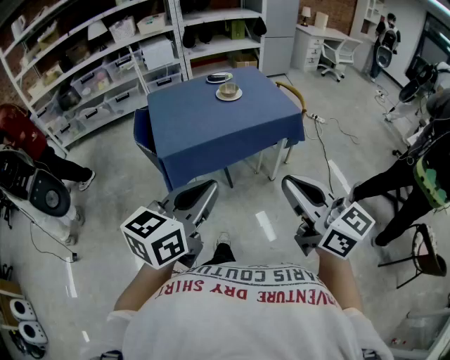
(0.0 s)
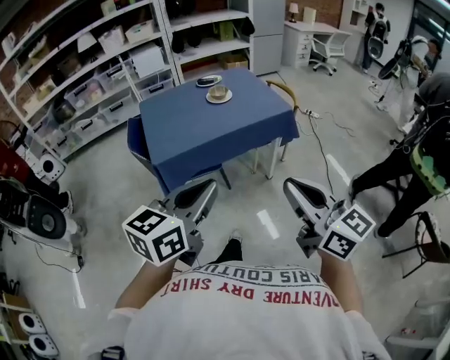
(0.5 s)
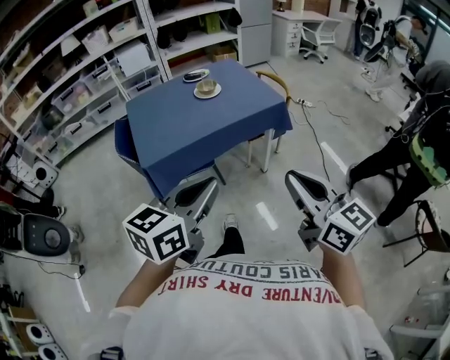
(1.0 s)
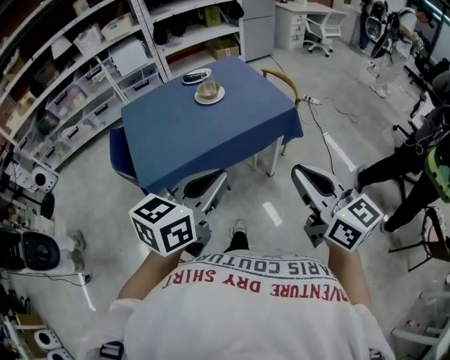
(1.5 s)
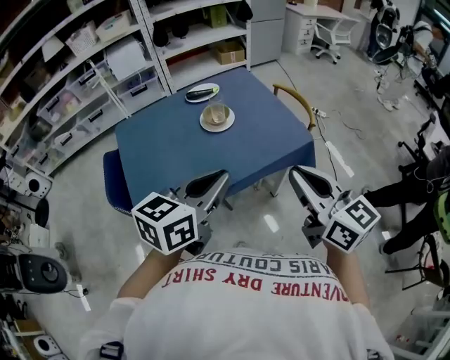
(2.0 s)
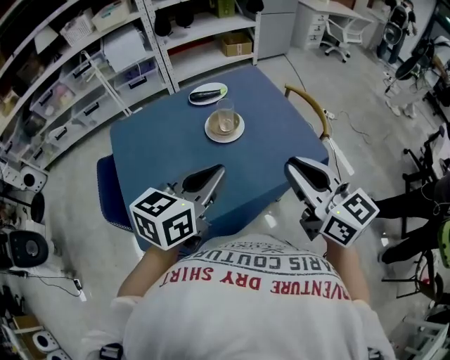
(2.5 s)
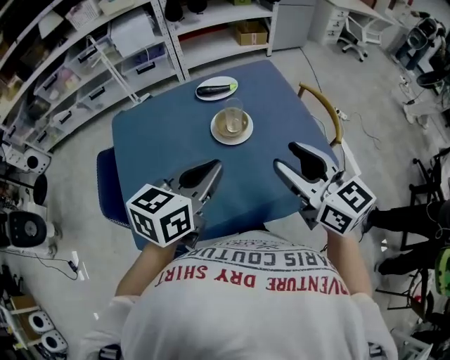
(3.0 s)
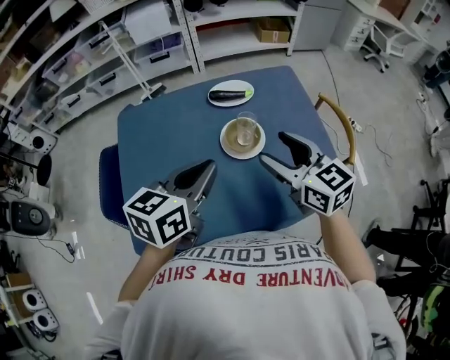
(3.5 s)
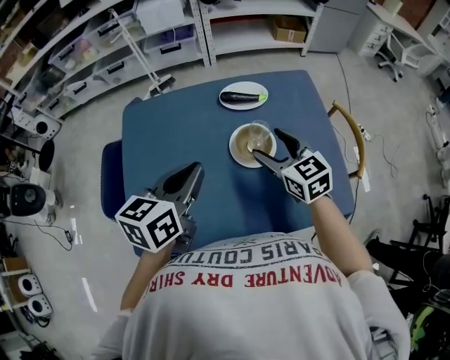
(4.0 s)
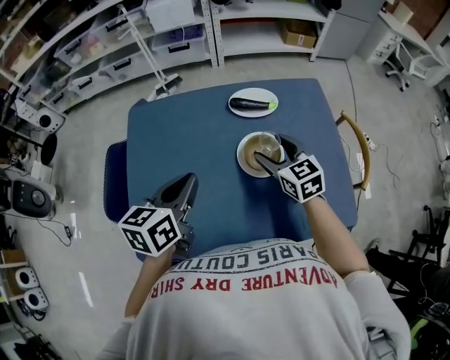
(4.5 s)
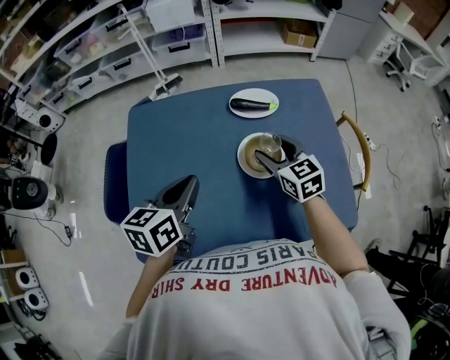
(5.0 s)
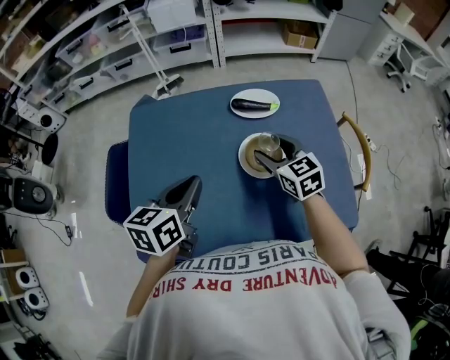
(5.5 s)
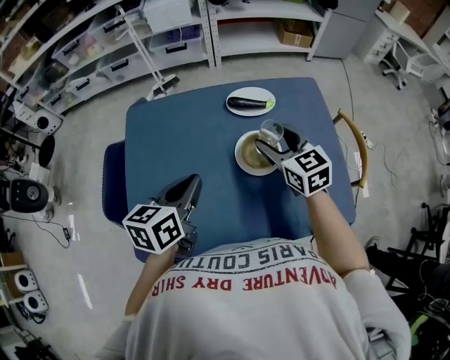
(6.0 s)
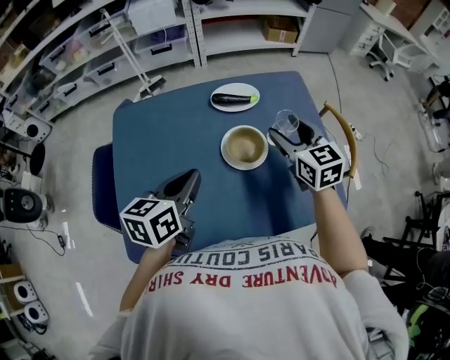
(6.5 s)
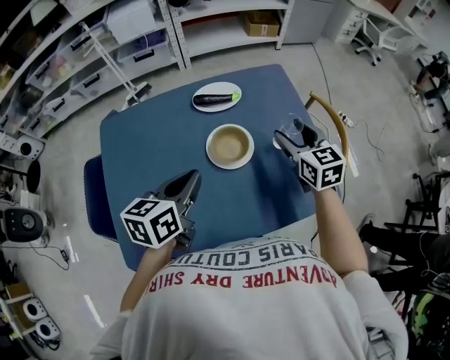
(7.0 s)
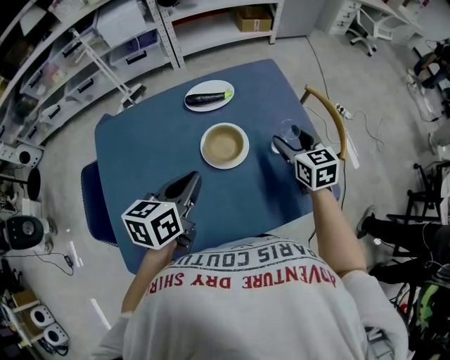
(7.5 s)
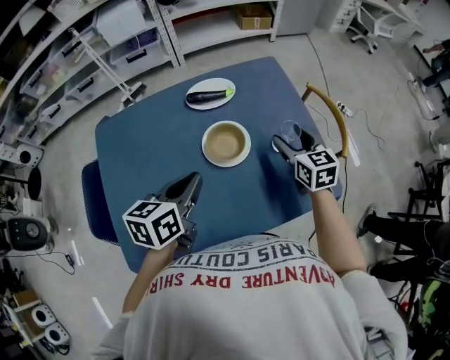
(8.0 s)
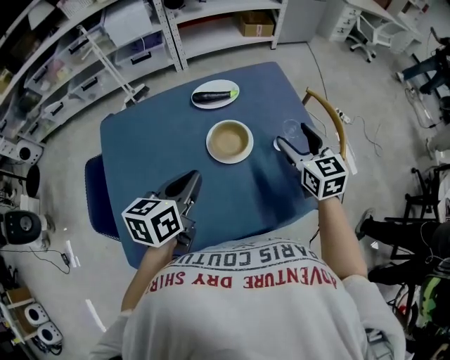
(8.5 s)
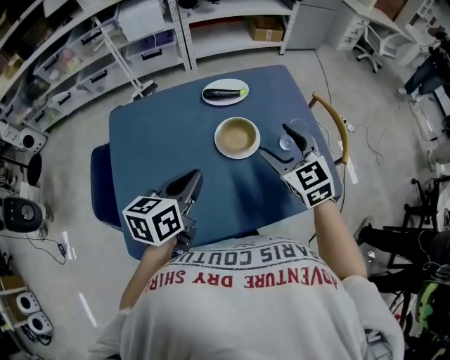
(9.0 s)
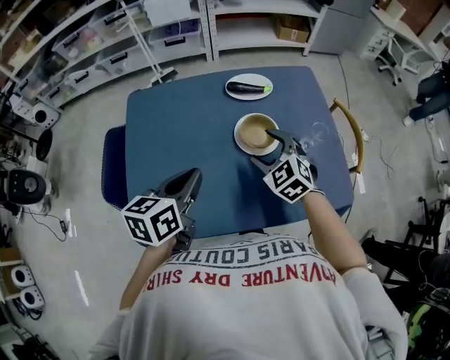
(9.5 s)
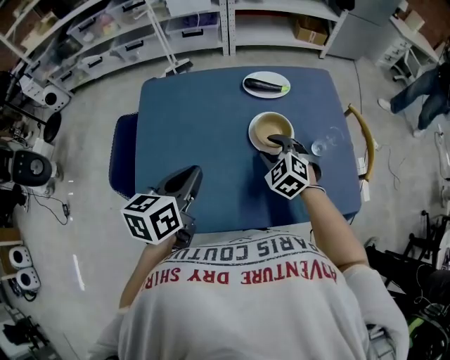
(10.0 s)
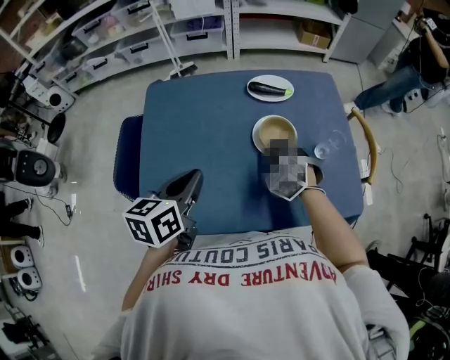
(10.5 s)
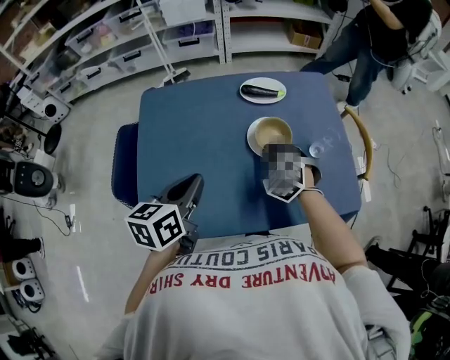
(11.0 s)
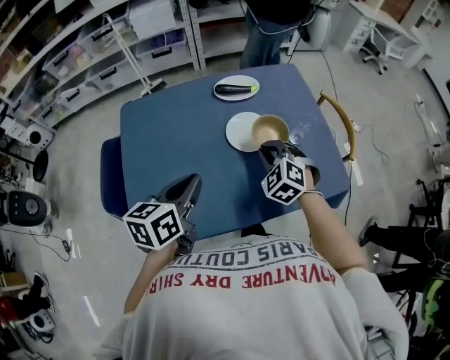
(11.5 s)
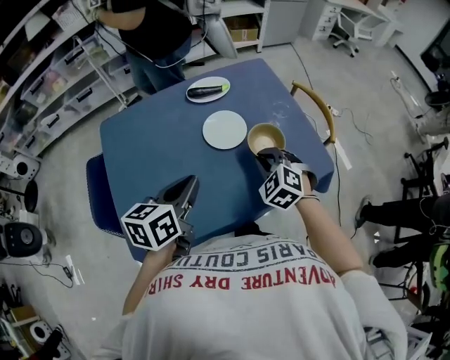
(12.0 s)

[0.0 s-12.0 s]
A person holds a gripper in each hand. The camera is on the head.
0.0 to 2.0 s: Both grippers move forward, approximately 35 cm.
2.0 to 4.0 s: The left gripper heads forward and to the left, covering about 30 cm, and turns by some 30 degrees; the right gripper heads forward and downward, covering roughly 40 cm, swivels approximately 30 degrees, and opens up.
4.0 to 6.0 s: The left gripper shifts by some 5 cm.
6.0 to 8.0 s: The right gripper heads to the right, covering about 15 cm, and changes its angle by approximately 20 degrees. Meanwhile the left gripper is displaced to the right by roughly 10 cm.
8.0 to 10.0 s: The right gripper shifts some 20 cm to the left, and rolls counterclockwise, seen from behind, by roughly 50 degrees; the left gripper shifts roughly 15 cm to the left and backward.
10.0 to 12.0 s: The left gripper goes about 10 cm to the right; the right gripper travels to the right and backward by approximately 10 cm, and closes its fingers.

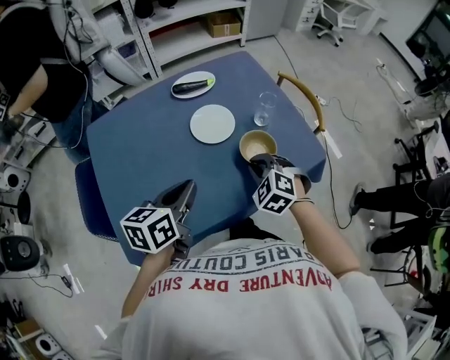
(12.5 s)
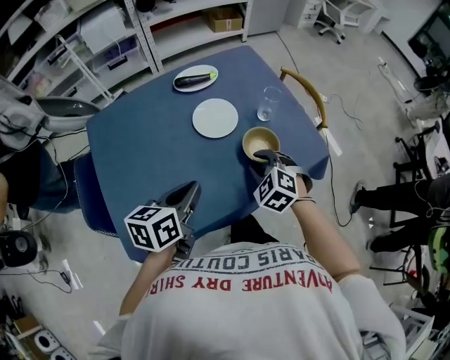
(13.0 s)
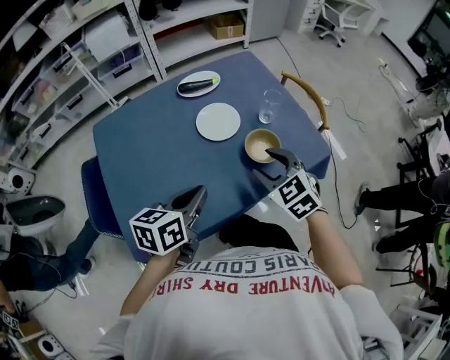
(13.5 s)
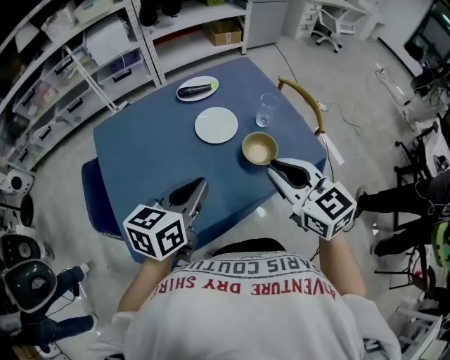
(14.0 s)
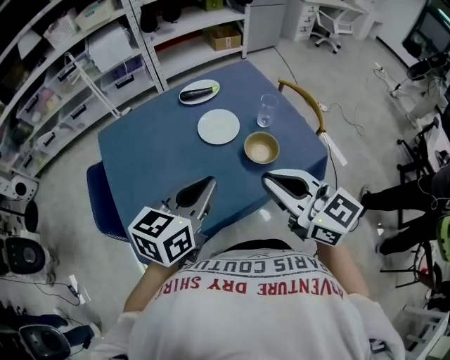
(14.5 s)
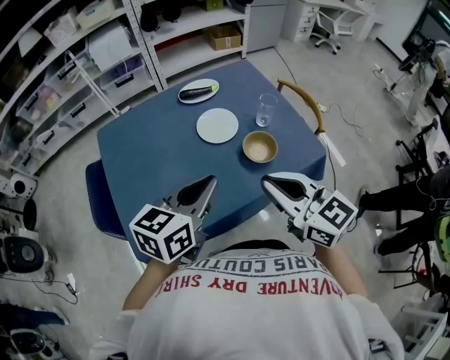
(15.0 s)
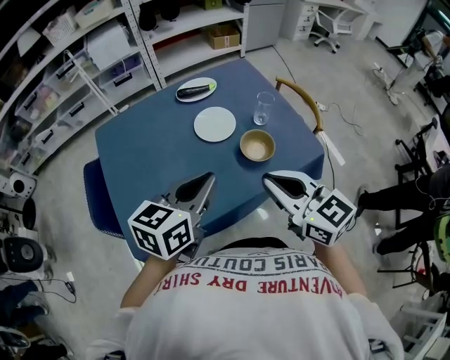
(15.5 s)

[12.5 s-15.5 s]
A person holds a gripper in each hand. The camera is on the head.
12.5 to 14.0 s: The right gripper shifts approximately 20 cm upward, angles its fingers upward, by approximately 30 degrees, and opens, then closes again; the left gripper is displaced upward by roughly 5 cm.
14.0 to 15.5 s: There are only small adjustments of the grippers.

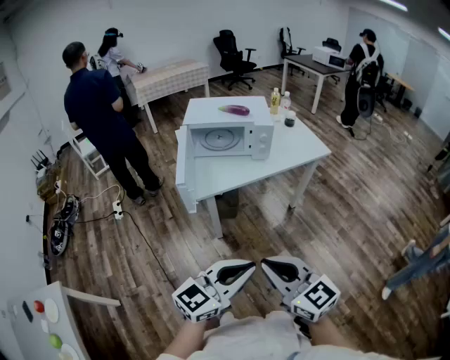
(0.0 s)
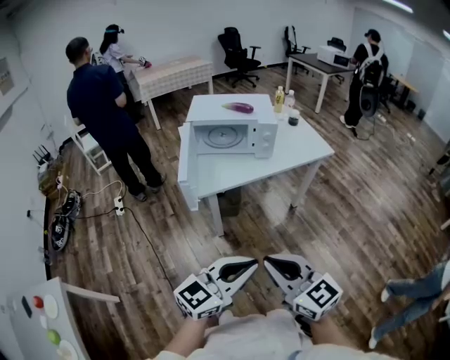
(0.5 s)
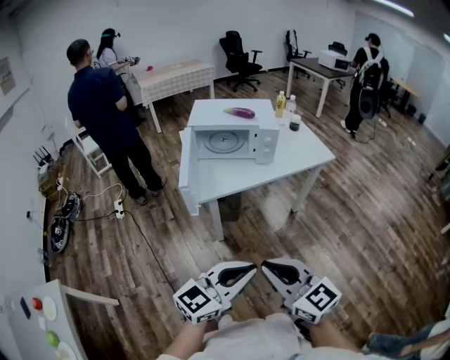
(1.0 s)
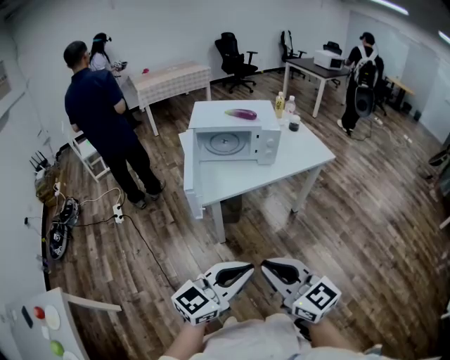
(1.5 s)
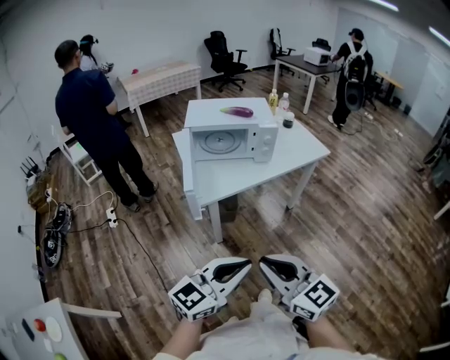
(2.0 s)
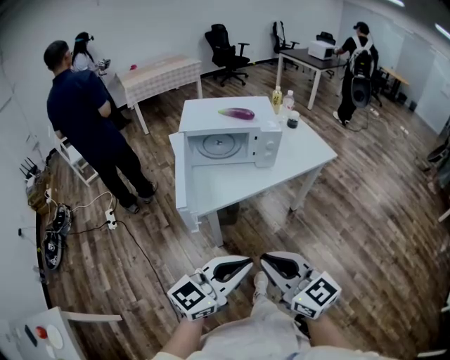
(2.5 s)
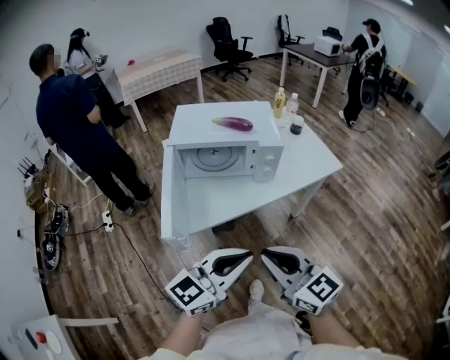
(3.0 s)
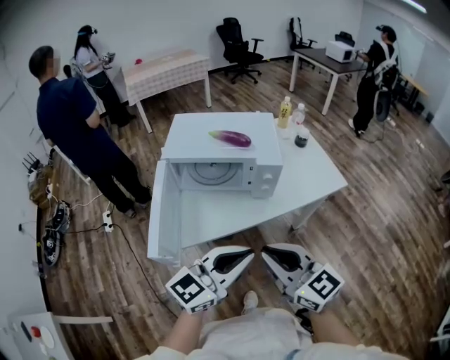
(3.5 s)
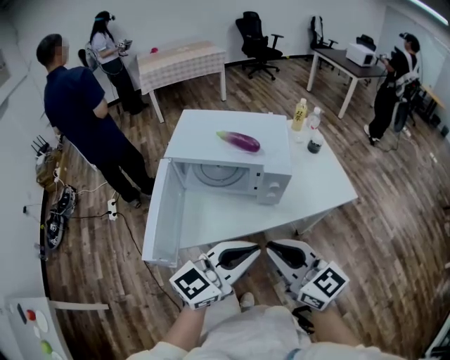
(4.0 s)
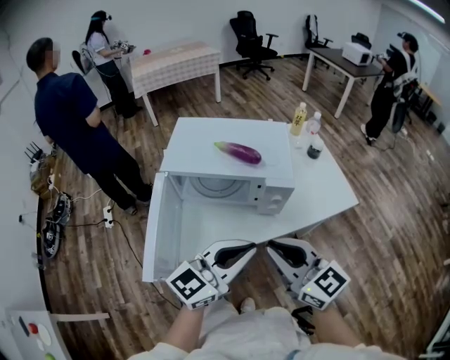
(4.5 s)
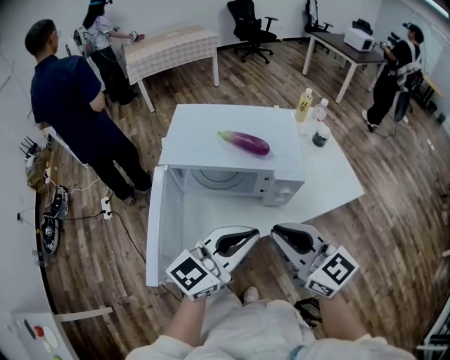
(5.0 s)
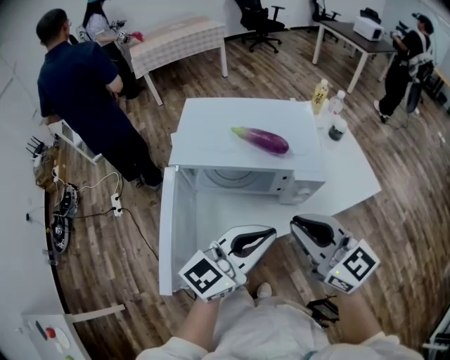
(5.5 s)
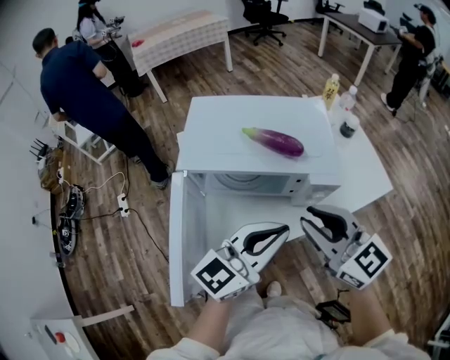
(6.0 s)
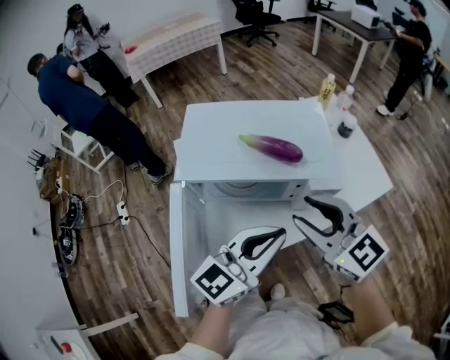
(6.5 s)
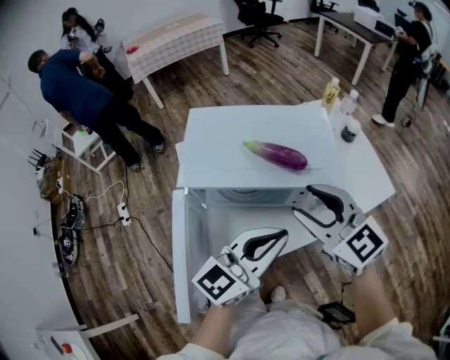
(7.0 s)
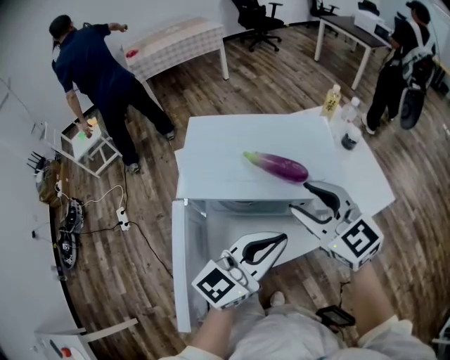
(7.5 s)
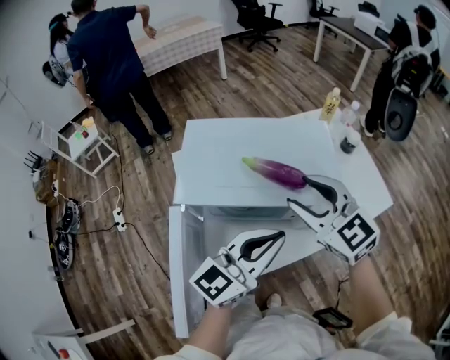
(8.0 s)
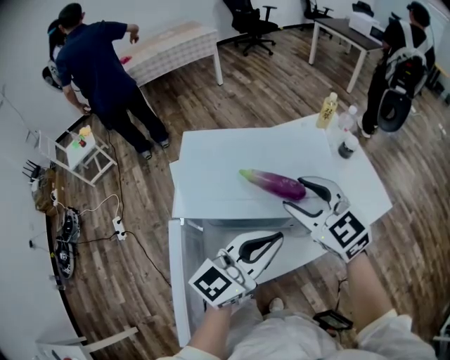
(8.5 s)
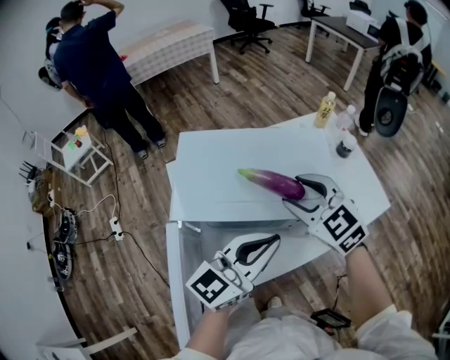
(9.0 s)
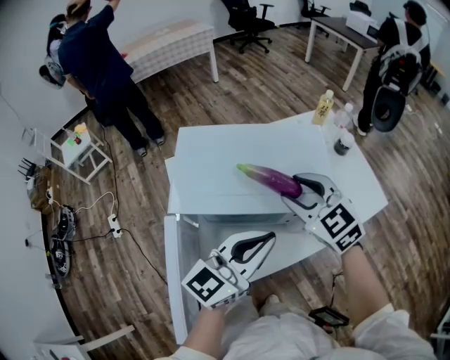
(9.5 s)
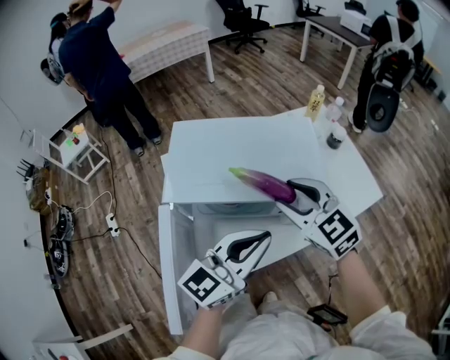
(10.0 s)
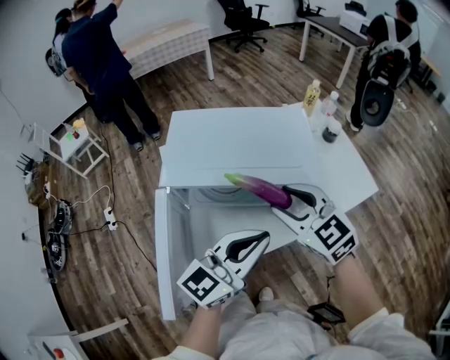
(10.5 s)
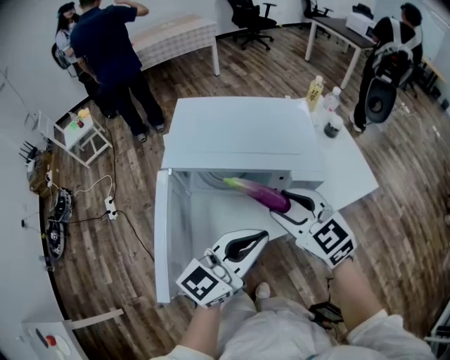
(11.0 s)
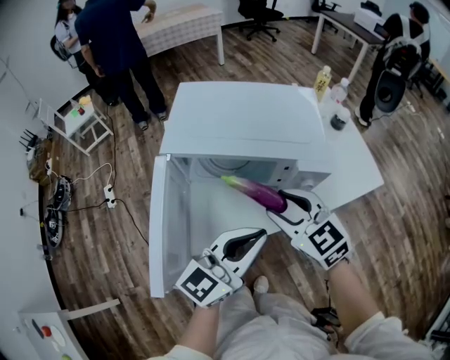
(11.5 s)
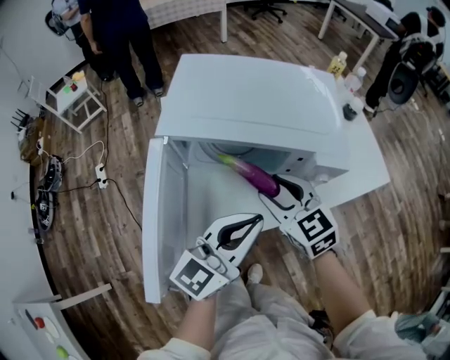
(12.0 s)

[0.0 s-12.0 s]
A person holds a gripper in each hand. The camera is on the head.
0.0 to 2.0 s: The two grippers go about 5 cm to the left.
2.0 to 4.0 s: The grippers both shift forward by approximately 35 cm.
4.0 to 6.0 s: The left gripper heads forward and to the left, covering roughly 15 cm; the right gripper shifts some 15 cm forward.
6.0 to 8.0 s: The right gripper is displaced forward by roughly 15 cm, and opens. Meanwhile the left gripper heads forward, covering roughly 5 cm.
8.0 to 10.0 s: The grippers make only small movements.
10.0 to 12.0 s: Both grippers move downward and backward, roughly 10 cm.
